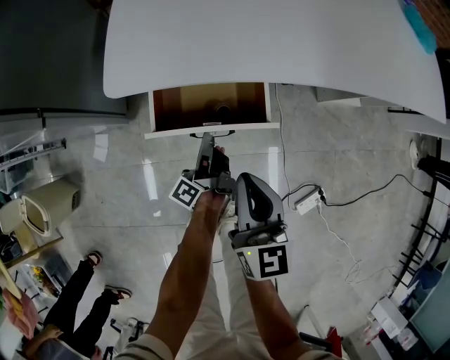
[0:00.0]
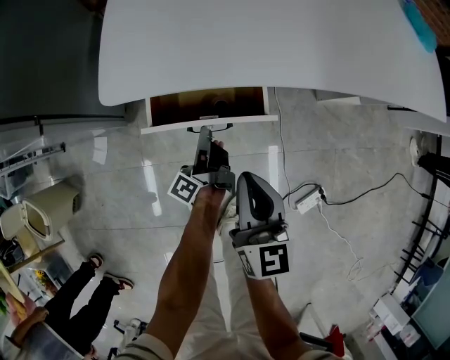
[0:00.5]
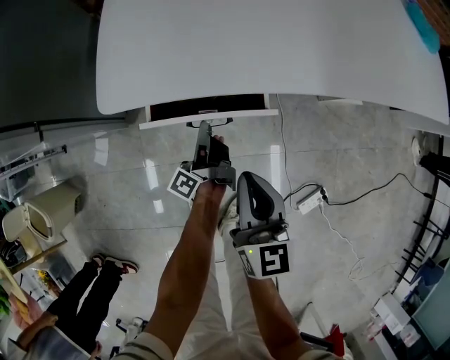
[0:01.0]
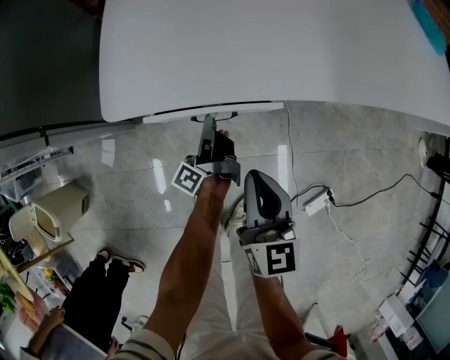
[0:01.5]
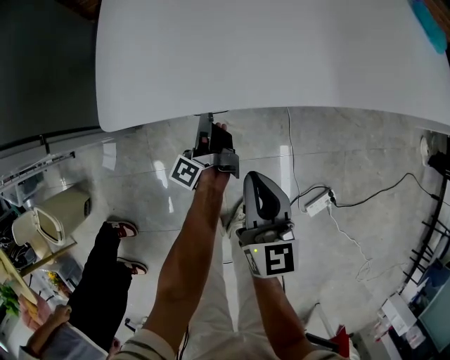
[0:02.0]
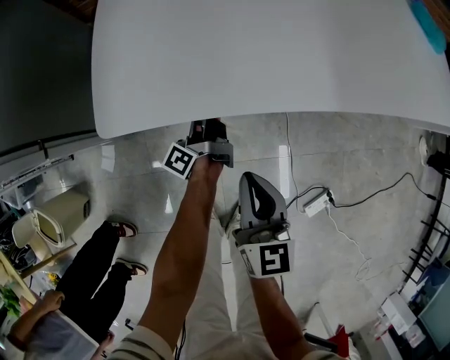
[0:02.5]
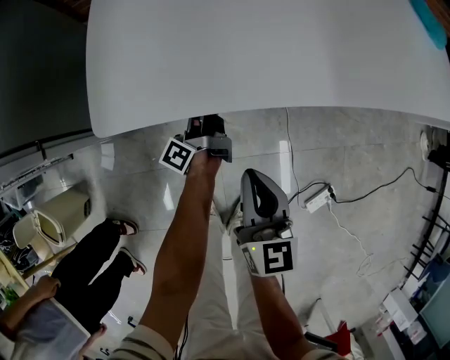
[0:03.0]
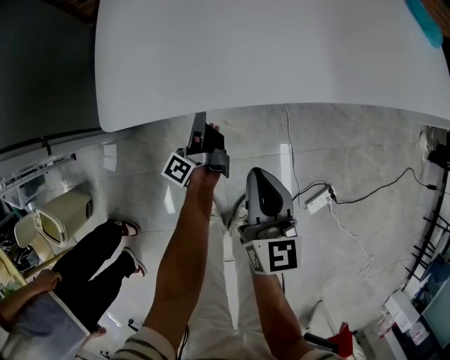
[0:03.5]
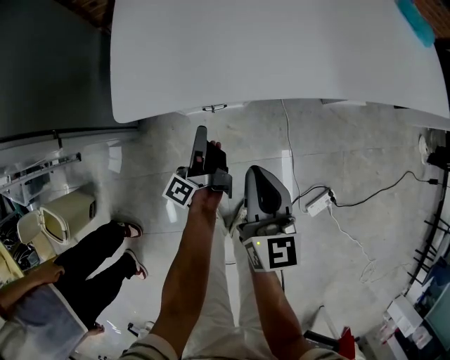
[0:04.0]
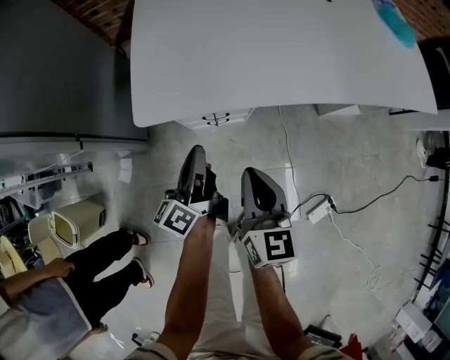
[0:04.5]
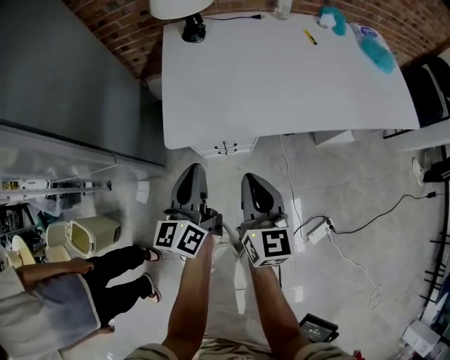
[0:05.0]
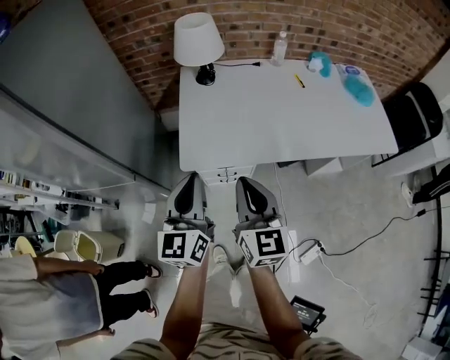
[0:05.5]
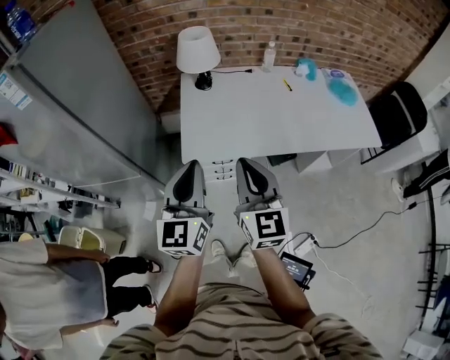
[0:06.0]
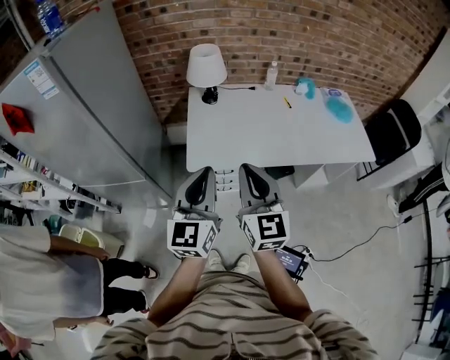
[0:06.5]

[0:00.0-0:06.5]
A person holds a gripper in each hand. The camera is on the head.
0:00.0 to 0:02.0: The left gripper is displaced forward by about 10 cm. Meanwhile the right gripper changes place by some 5 cm.
0:02.0 to 0:04.5: The left gripper travels upward and backward by about 20 cm, and changes its angle by roughly 30 degrees, while the right gripper is displaced upward by about 10 cm.
0:04.5 to 0:06.5: Both grippers move upward, approximately 40 cm. The left gripper rolls clockwise, seen from behind, by approximately 60 degrees; the right gripper turns by approximately 30 degrees.

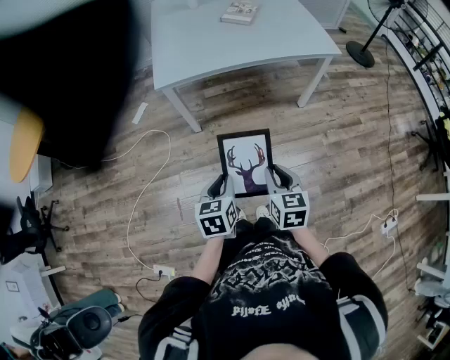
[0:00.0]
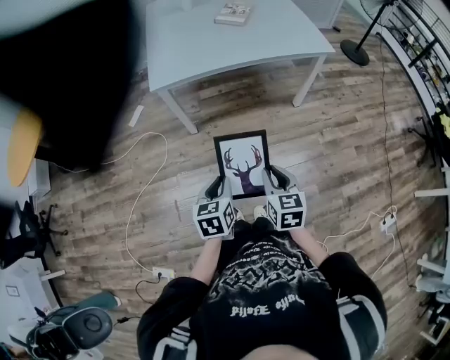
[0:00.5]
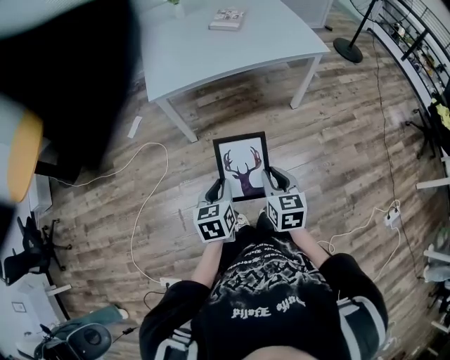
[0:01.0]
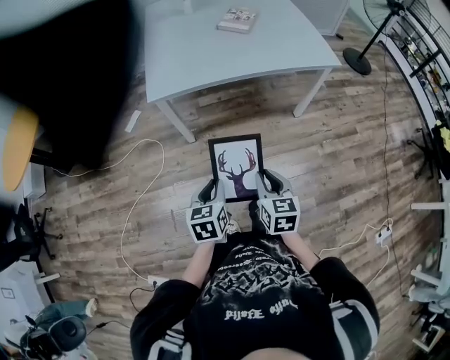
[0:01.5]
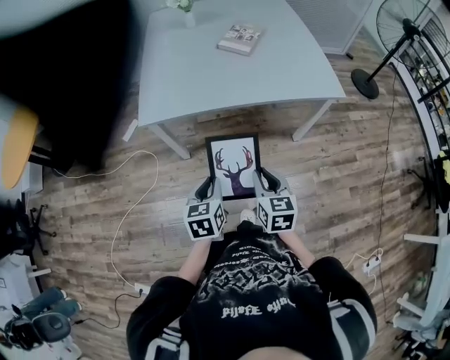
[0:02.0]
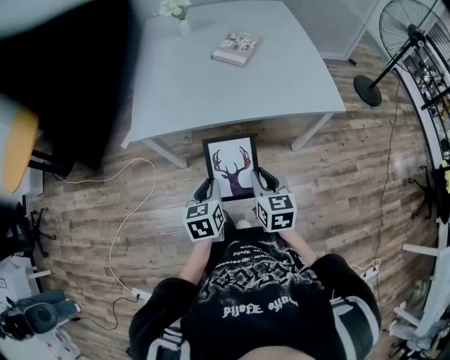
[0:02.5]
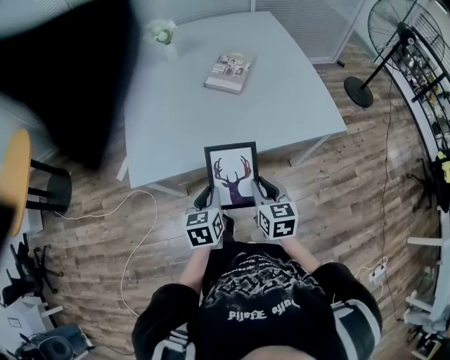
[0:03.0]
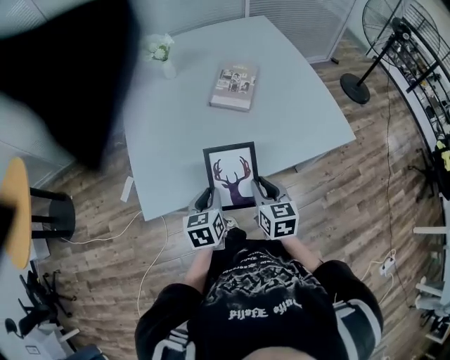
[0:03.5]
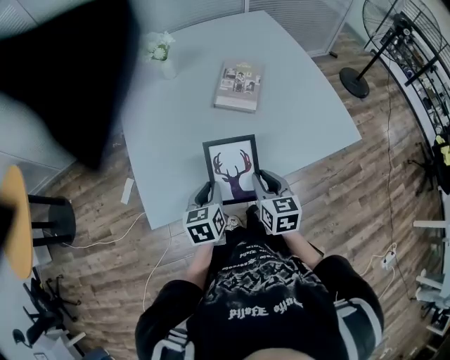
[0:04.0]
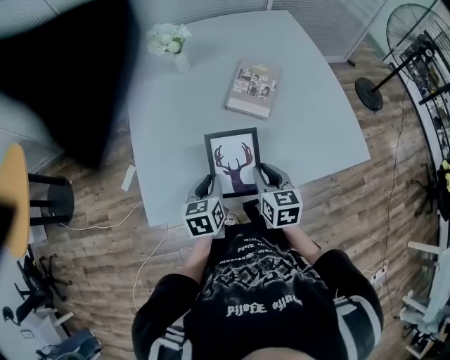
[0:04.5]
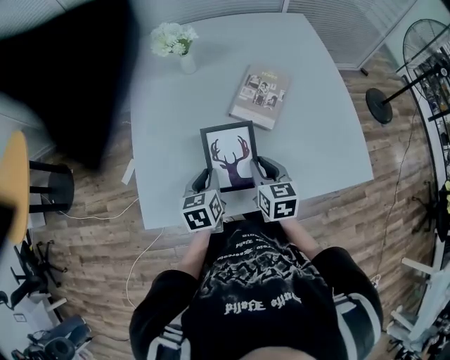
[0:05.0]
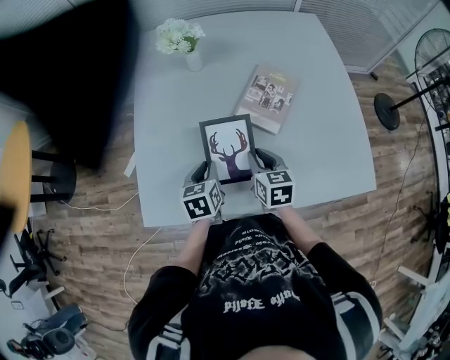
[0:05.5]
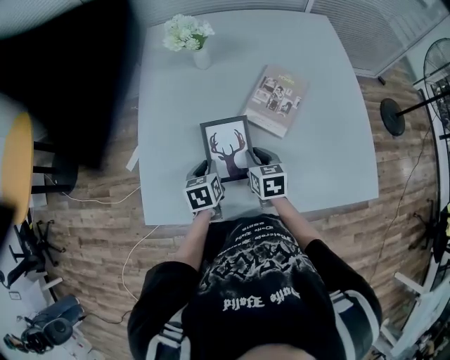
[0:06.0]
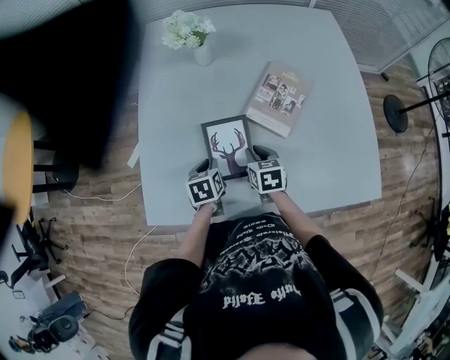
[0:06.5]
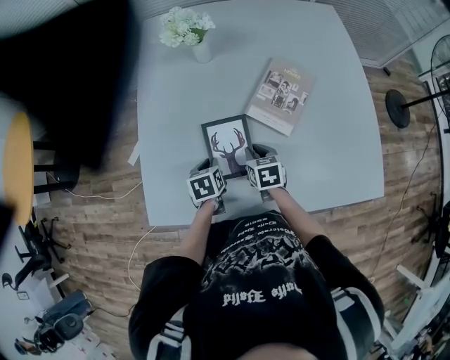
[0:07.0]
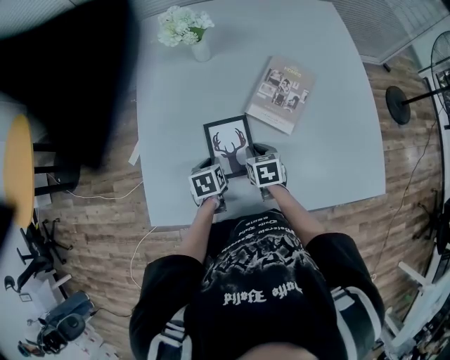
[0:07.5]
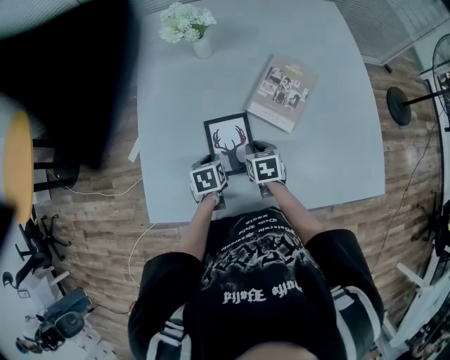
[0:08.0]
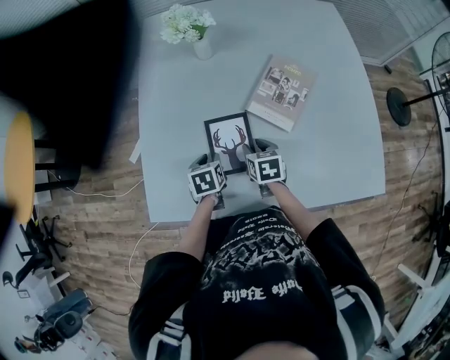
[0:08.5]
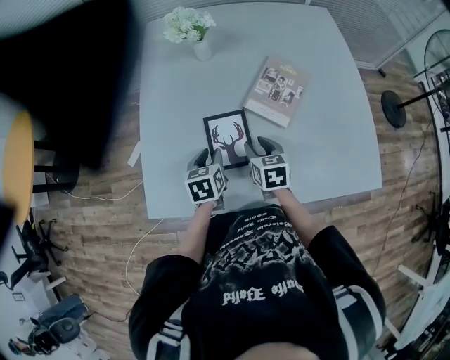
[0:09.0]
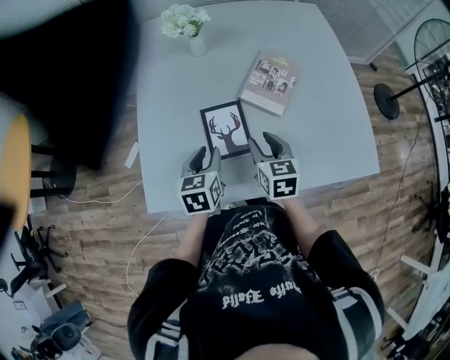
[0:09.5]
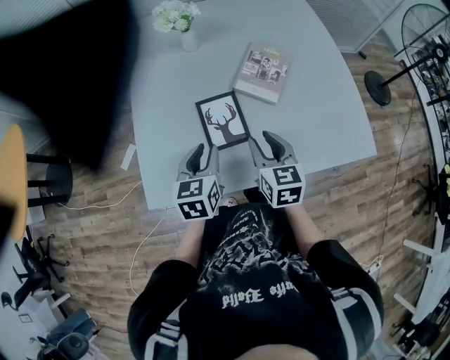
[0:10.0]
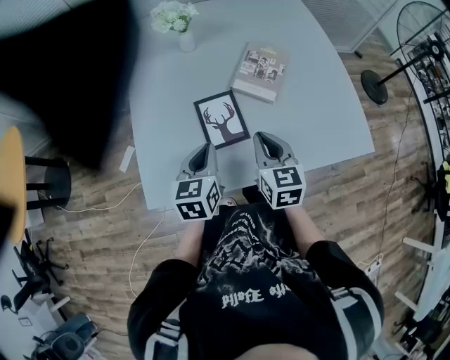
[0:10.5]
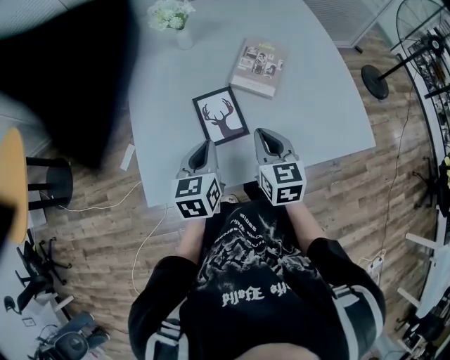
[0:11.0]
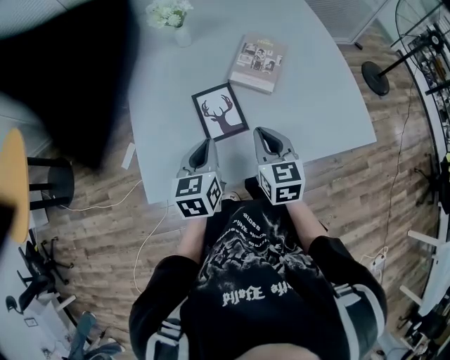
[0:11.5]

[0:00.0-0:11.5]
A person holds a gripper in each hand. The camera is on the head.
0:00.0 to 0:02.0: Both grippers travel together forward, some 20 cm.
0:02.0 to 0:04.0: The grippers both shift forward by approximately 35 cm.
0:04.0 to 0:06.0: The two grippers go roughly 20 cm forward. The left gripper changes its angle by approximately 20 degrees, while the right gripper turns by roughly 20 degrees.
0:06.0 to 0:07.5: Both grippers travel together downward, approximately 5 cm.
0:07.5 to 0:09.5: The left gripper travels upward by roughly 15 cm, and changes its angle by approximately 30 degrees. The right gripper travels upward and backward by some 15 cm, and turns by roughly 20 degrees.
0:09.5 to 0:11.5: The two grippers go roughly 5 cm backward. The right gripper closes up. Meanwhile the left gripper closes.

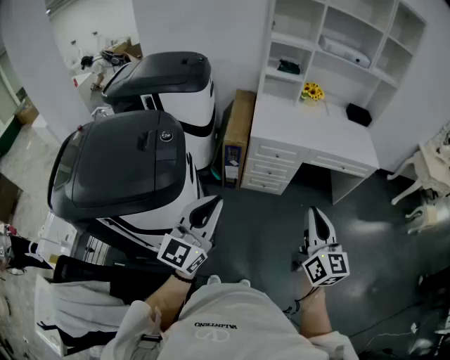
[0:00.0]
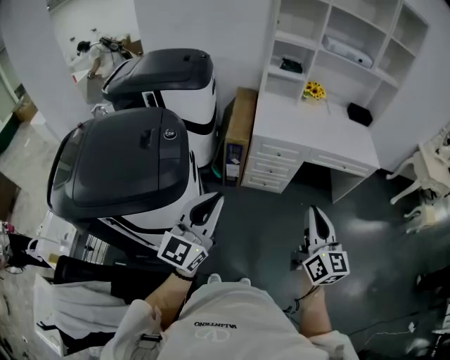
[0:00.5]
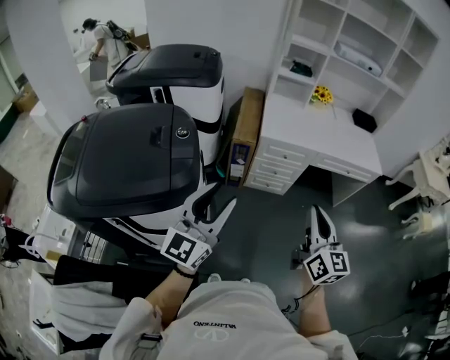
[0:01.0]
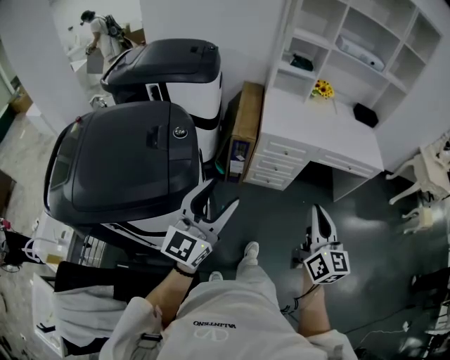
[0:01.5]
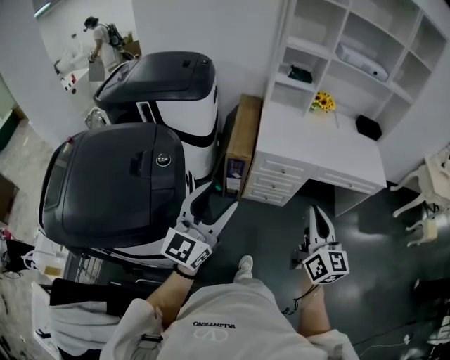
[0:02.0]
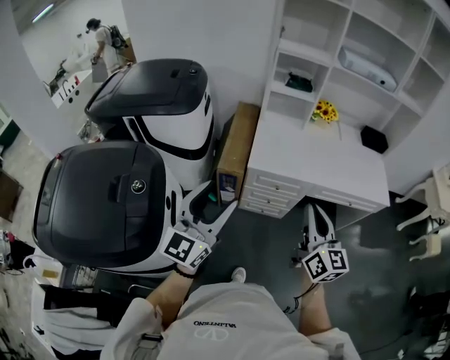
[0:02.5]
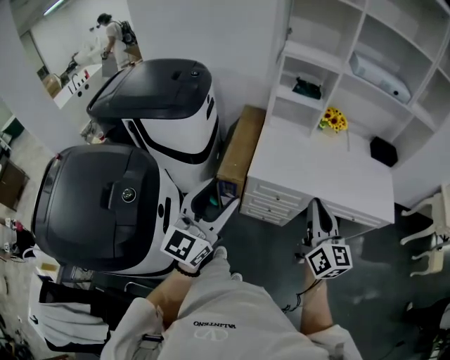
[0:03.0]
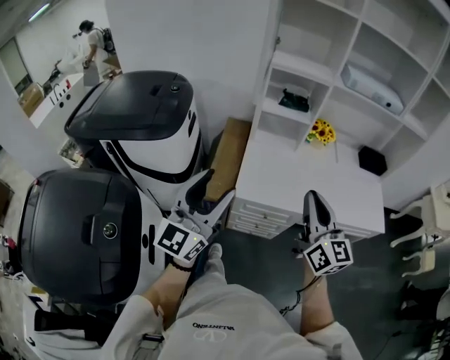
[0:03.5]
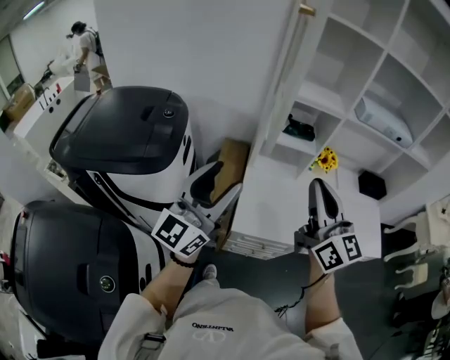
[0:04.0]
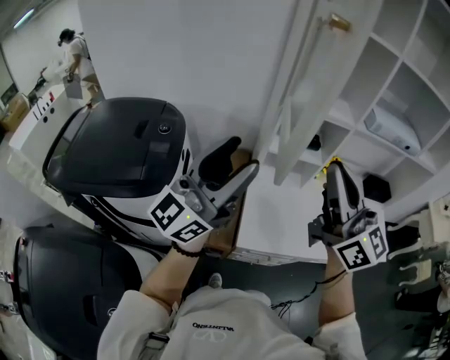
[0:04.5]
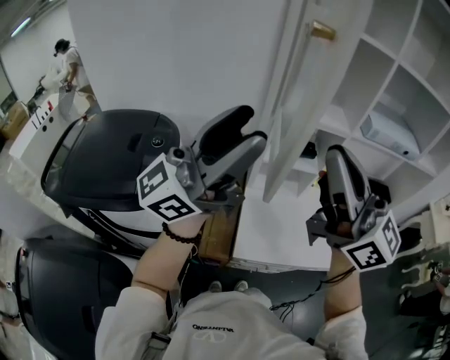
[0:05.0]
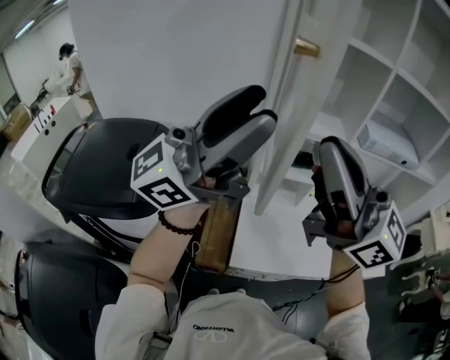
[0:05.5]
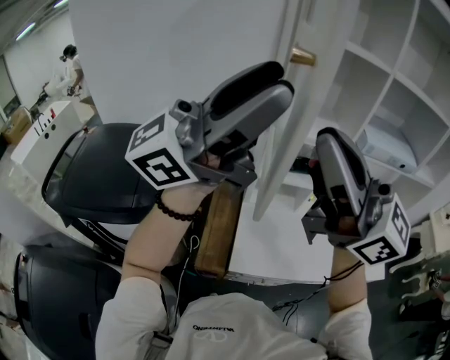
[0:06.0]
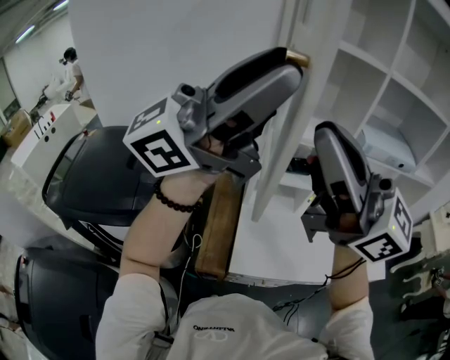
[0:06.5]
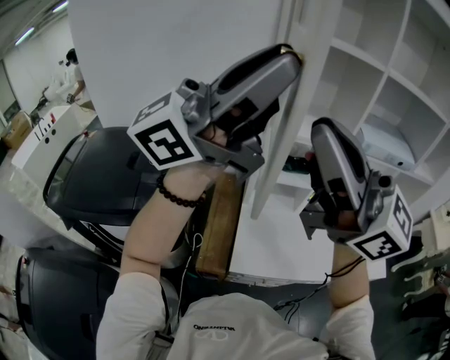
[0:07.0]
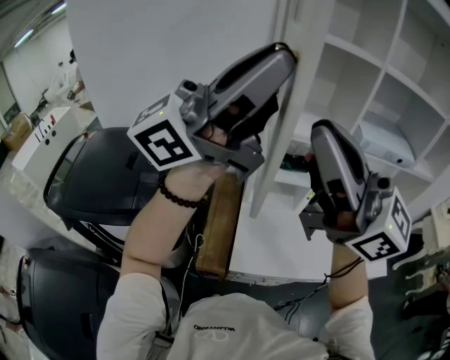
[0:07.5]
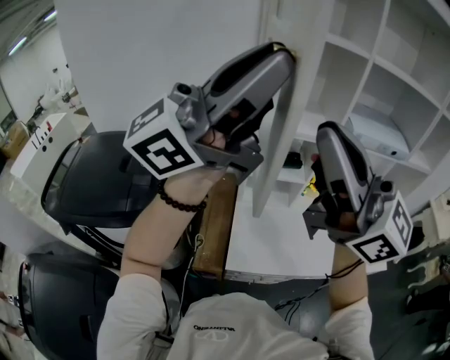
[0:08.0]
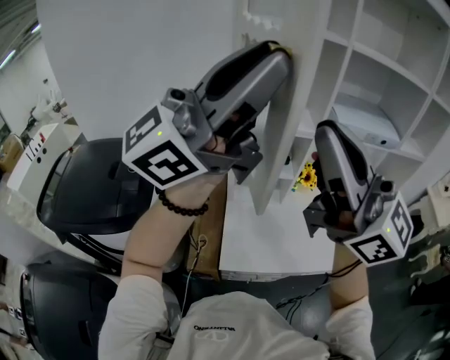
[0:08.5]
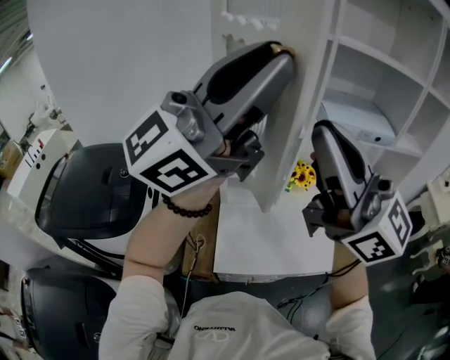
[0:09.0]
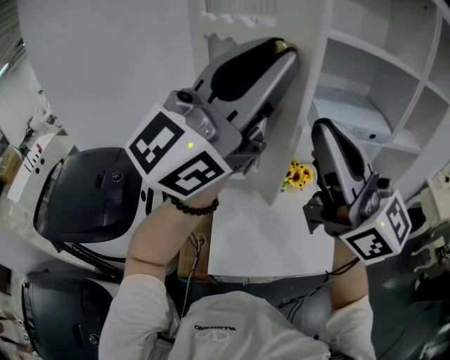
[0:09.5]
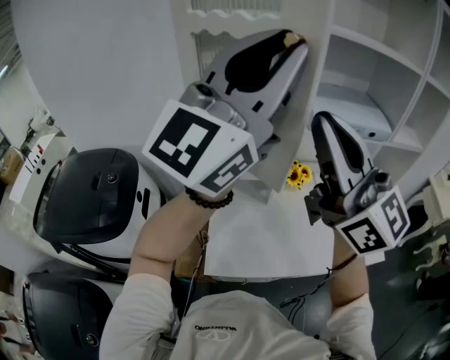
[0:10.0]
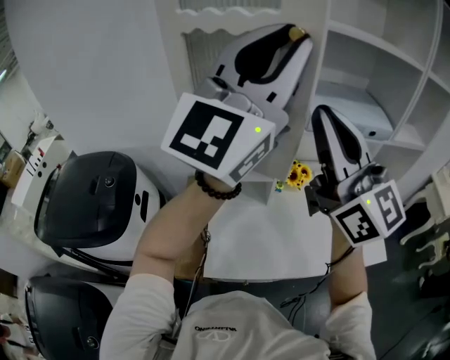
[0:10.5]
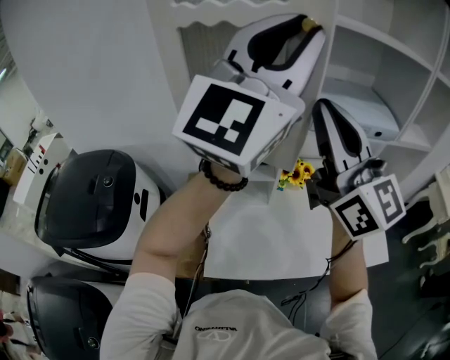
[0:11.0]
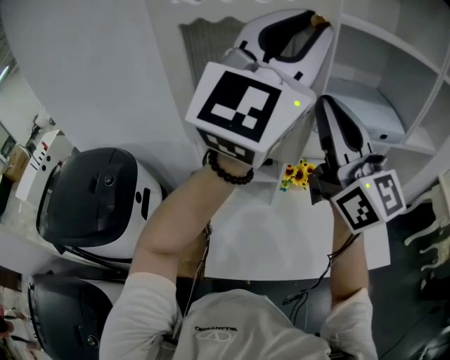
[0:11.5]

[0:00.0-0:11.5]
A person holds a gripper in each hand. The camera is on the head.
0:00.0 to 0:02.0: The two grippers go some 15 cm forward. The left gripper opens up.
0:02.0 to 0:04.0: The pair of grippers is taken forward, roughly 50 cm.
0:04.0 to 0:06.0: The grippers both shift upward by approximately 25 cm. The right gripper changes its angle by some 30 degrees; the left gripper turns by about 50 degrees.
0:06.0 to 0:07.5: The left gripper closes.
0:07.5 to 0:09.5: The right gripper ends up about 15 cm from where it was, while the left gripper changes place by about 15 cm, and turns by some 30 degrees.
0:09.5 to 0:11.5: The left gripper shifts roughly 15 cm forward and to the right, and rotates some 30 degrees. Meanwhile the right gripper travels forward by approximately 15 cm.
